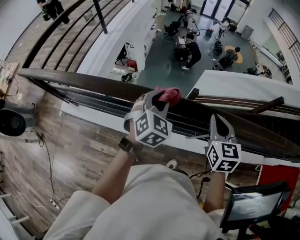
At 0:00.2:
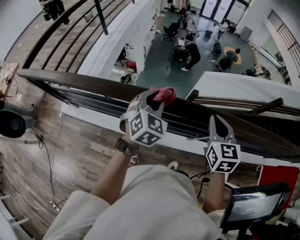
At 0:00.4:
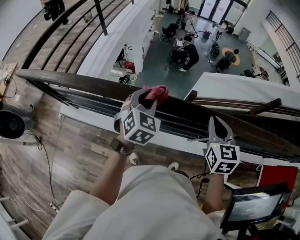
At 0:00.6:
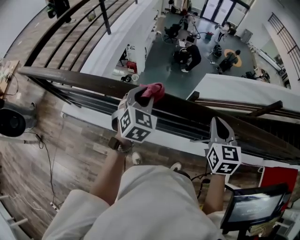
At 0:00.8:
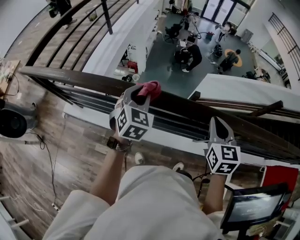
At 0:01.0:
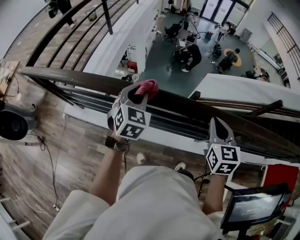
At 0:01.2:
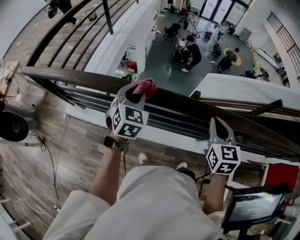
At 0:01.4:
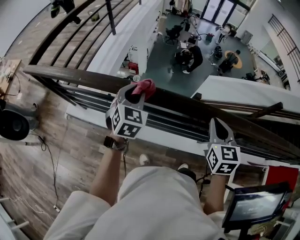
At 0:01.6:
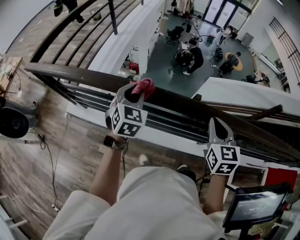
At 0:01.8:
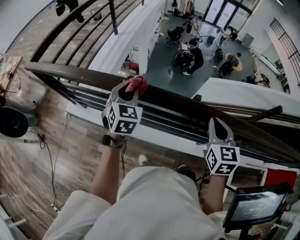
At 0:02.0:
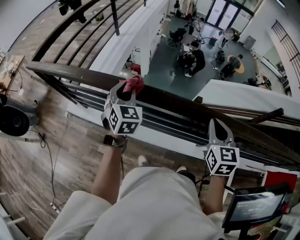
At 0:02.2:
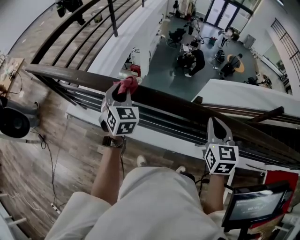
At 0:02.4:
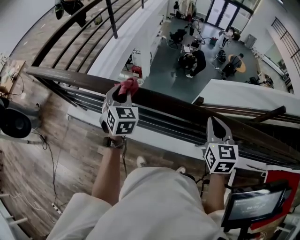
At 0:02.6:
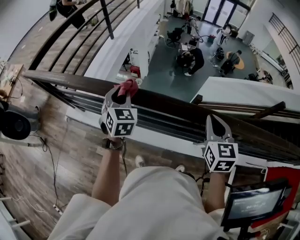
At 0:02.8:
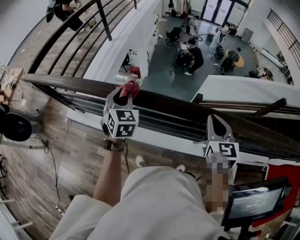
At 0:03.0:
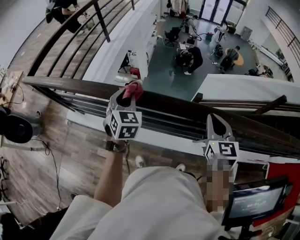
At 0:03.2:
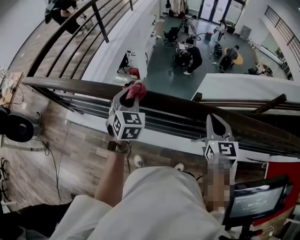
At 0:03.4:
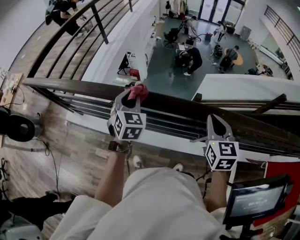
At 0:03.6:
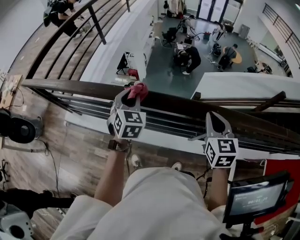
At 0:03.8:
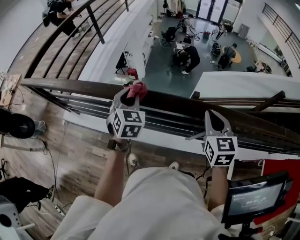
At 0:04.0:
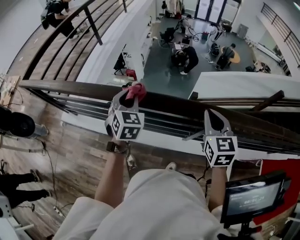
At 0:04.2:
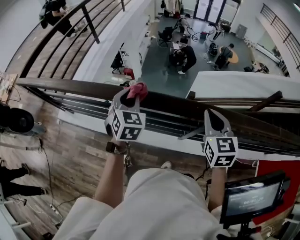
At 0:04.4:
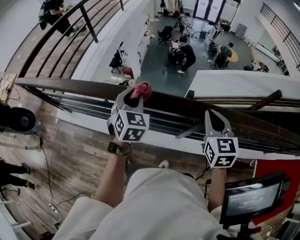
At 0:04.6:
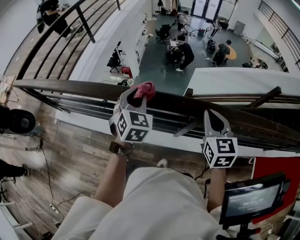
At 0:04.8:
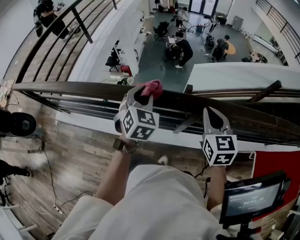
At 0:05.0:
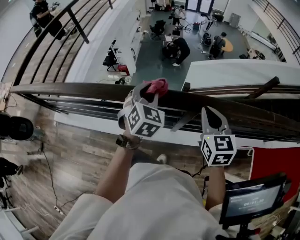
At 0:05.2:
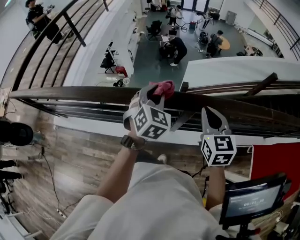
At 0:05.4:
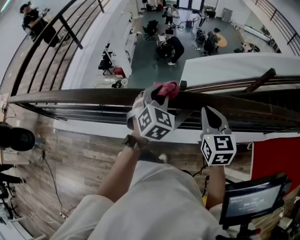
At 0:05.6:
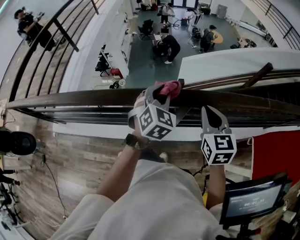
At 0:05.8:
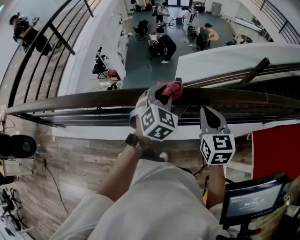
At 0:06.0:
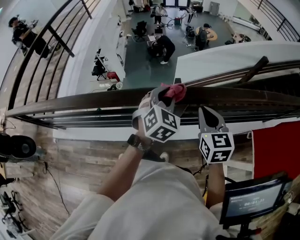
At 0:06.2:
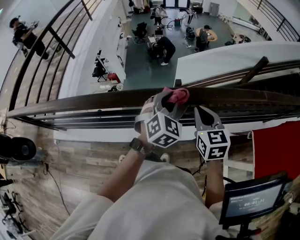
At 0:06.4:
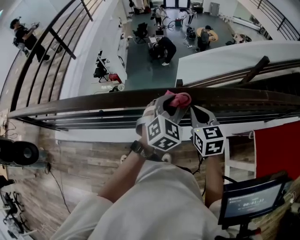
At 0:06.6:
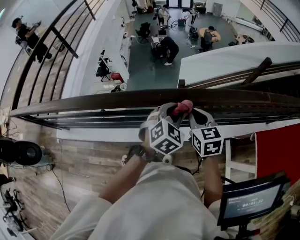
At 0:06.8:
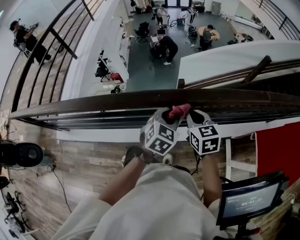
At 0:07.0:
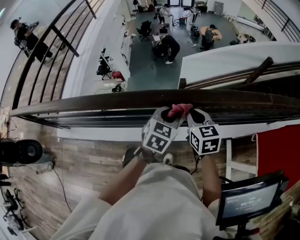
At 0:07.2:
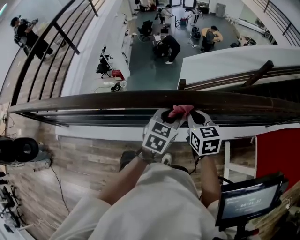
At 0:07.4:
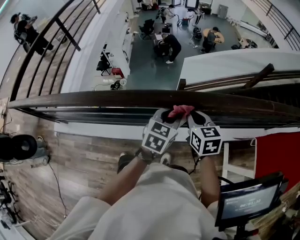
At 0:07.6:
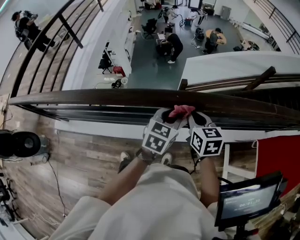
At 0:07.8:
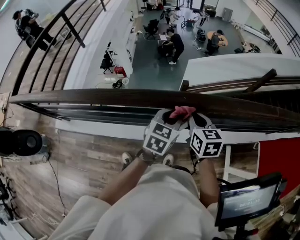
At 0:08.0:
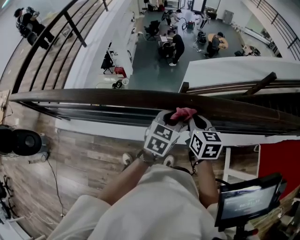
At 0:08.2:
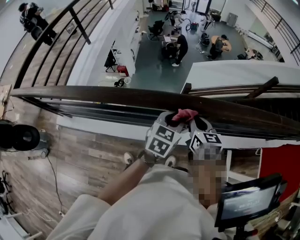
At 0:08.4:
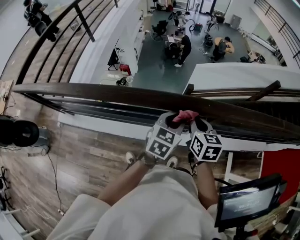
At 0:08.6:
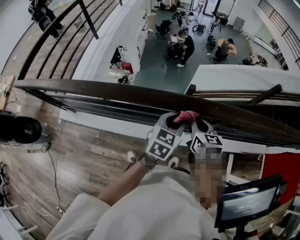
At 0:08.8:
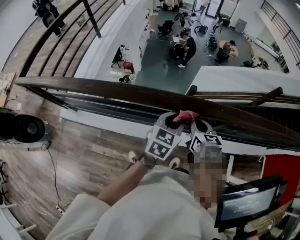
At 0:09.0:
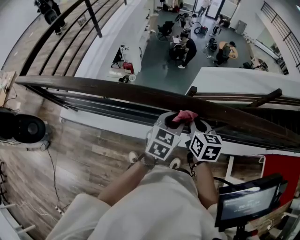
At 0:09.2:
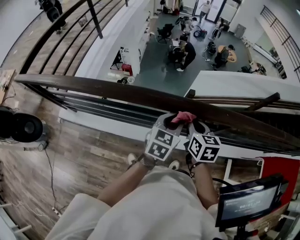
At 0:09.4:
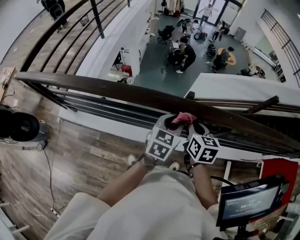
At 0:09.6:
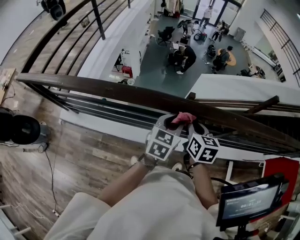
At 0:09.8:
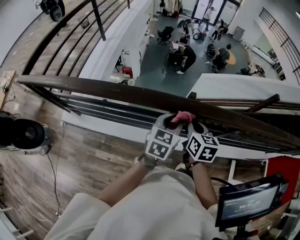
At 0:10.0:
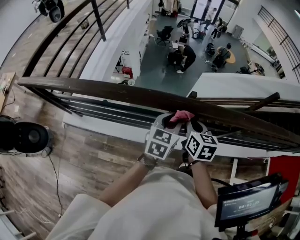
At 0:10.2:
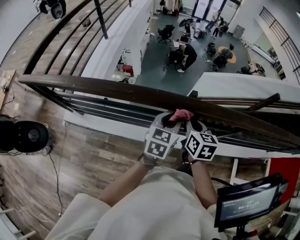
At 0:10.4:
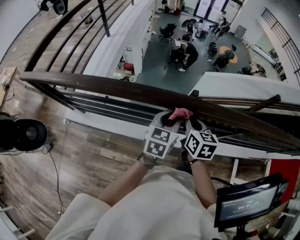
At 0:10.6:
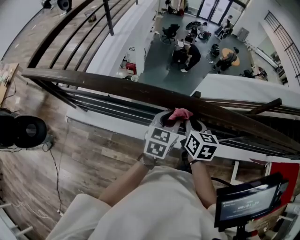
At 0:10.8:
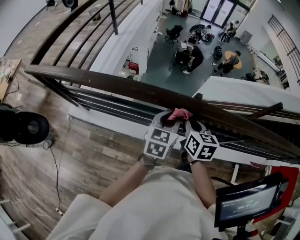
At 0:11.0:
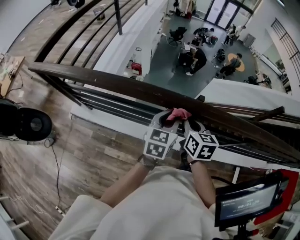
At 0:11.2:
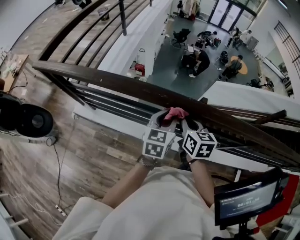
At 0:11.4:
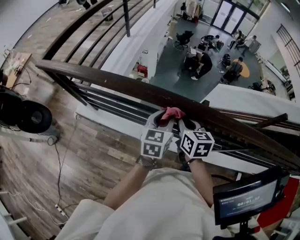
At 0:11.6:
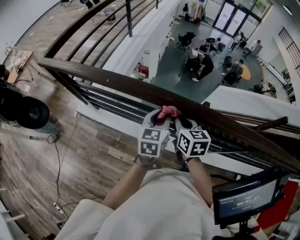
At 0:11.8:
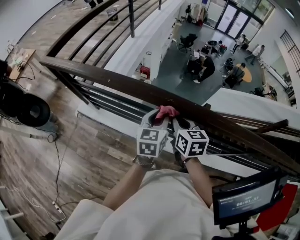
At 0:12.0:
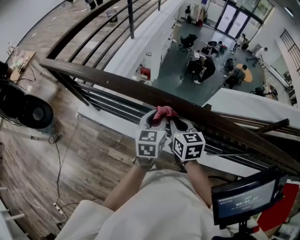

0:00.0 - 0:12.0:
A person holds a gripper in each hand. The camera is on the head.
0:00.0 - 0:01.6: The right gripper is displaced to the left by some 15 cm, while the left gripper shifts some 25 cm to the left.
0:01.6 - 0:03.0: The left gripper ends up roughly 5 cm from where it was. Meanwhile the right gripper is displaced to the right by about 10 cm.
0:03.0 - 0:04.4: Both grippers move to the right, approximately 20 cm.
0:04.4 - 0:06.0: The right gripper shifts approximately 10 cm to the right, while the left gripper moves to the right, approximately 25 cm, and rotates about 30 degrees.
0:06.0 - 0:07.6: The left gripper ends up roughly 5 cm from where it was, and turns by some 30 degrees; the right gripper goes about 10 cm to the left and downward.
0:07.6 - 0:09.0: The grippers both shift to the left by approximately 15 cm.
0:09.0 - 0:10.4: The grippers both shift to the left by some 15 cm.
0:10.4 - 0:12.0: Both grippers travel together to the left, about 15 cm. The left gripper swivels some 30 degrees, while the right gripper turns by approximately 20 degrees.

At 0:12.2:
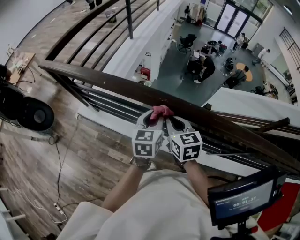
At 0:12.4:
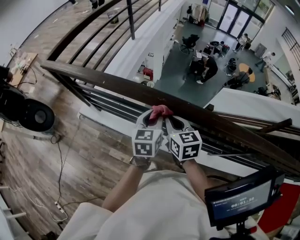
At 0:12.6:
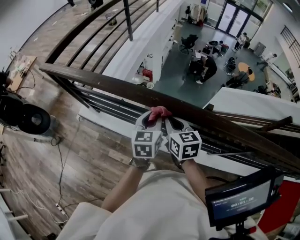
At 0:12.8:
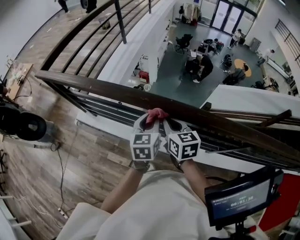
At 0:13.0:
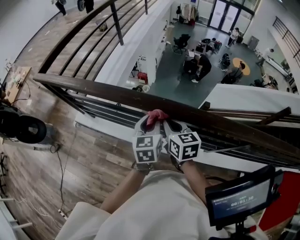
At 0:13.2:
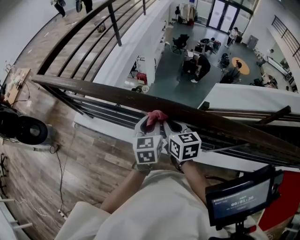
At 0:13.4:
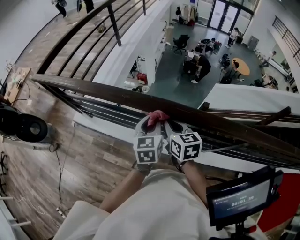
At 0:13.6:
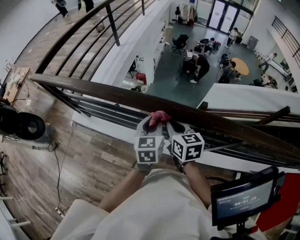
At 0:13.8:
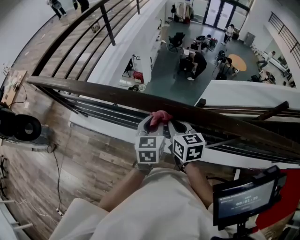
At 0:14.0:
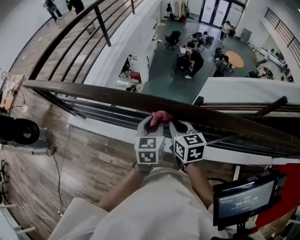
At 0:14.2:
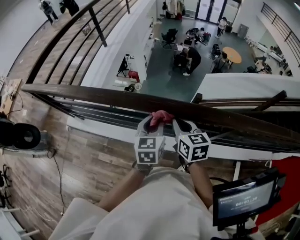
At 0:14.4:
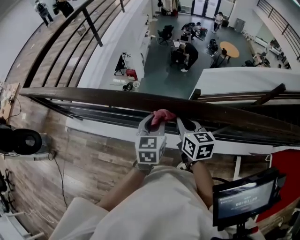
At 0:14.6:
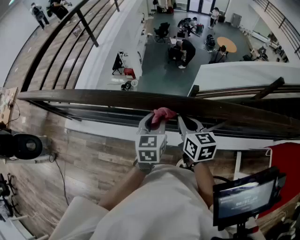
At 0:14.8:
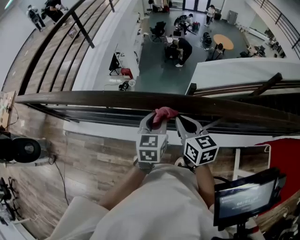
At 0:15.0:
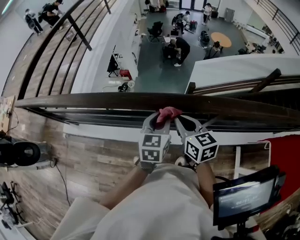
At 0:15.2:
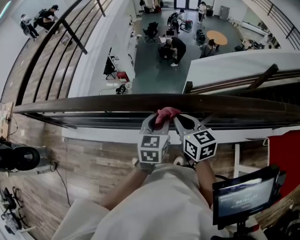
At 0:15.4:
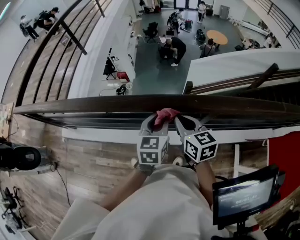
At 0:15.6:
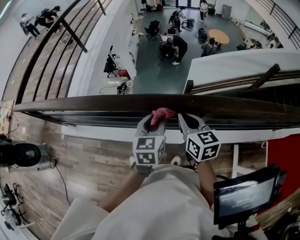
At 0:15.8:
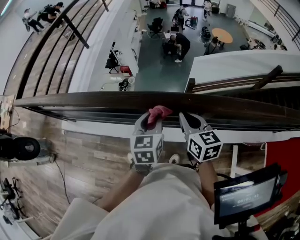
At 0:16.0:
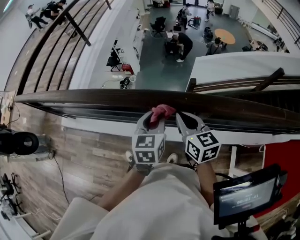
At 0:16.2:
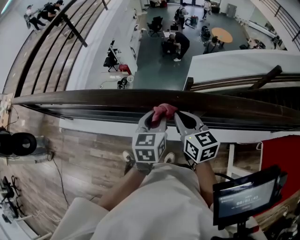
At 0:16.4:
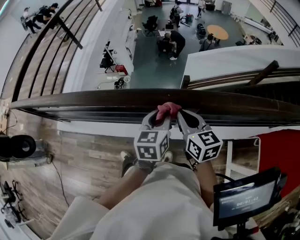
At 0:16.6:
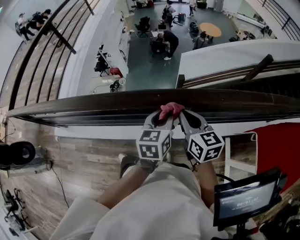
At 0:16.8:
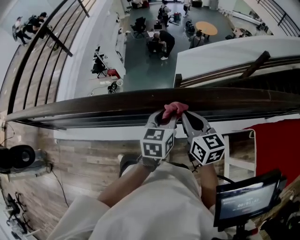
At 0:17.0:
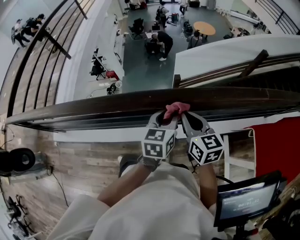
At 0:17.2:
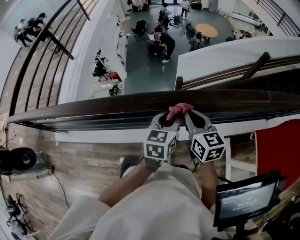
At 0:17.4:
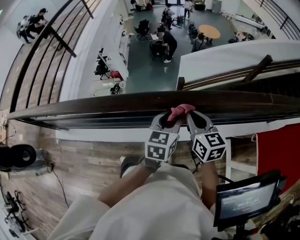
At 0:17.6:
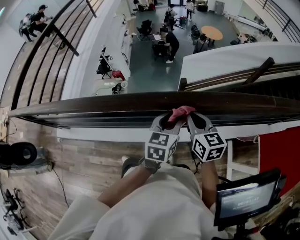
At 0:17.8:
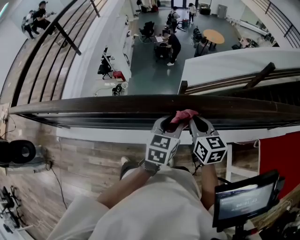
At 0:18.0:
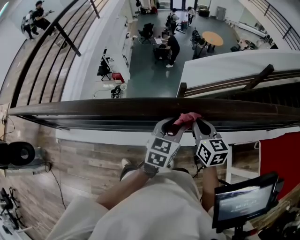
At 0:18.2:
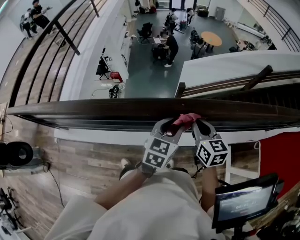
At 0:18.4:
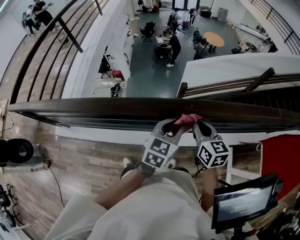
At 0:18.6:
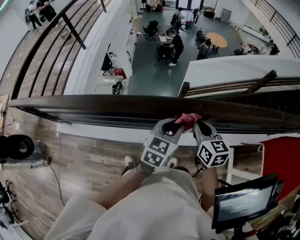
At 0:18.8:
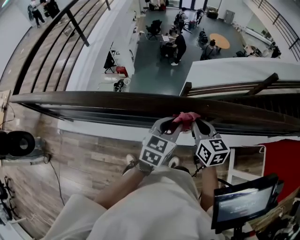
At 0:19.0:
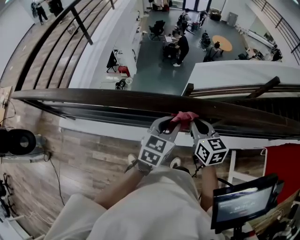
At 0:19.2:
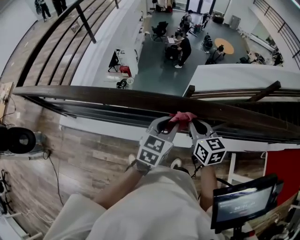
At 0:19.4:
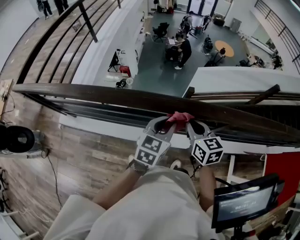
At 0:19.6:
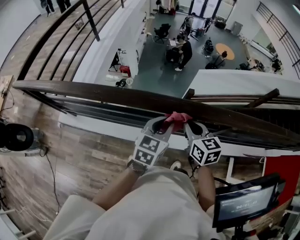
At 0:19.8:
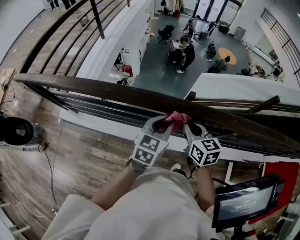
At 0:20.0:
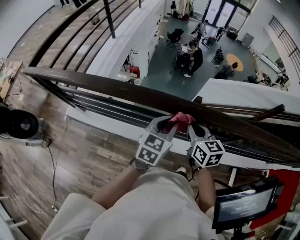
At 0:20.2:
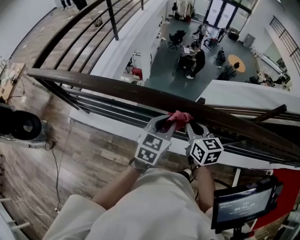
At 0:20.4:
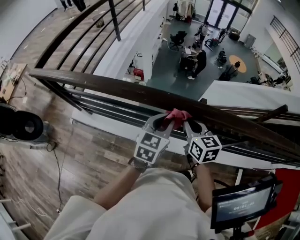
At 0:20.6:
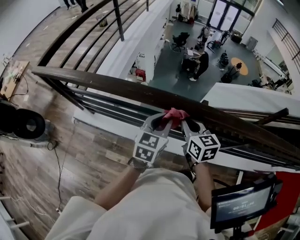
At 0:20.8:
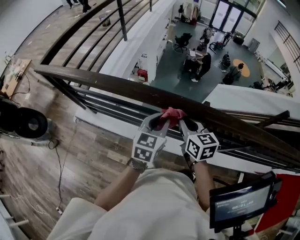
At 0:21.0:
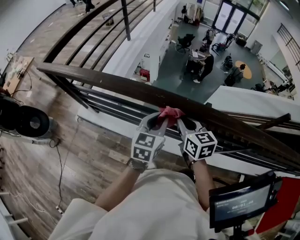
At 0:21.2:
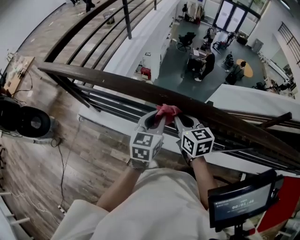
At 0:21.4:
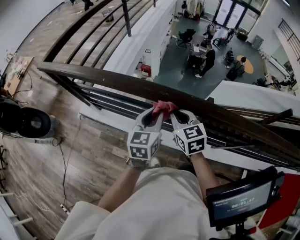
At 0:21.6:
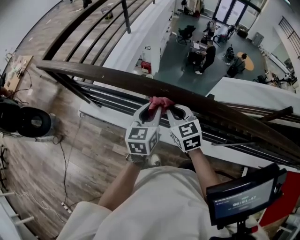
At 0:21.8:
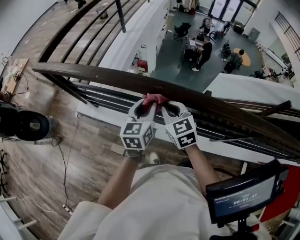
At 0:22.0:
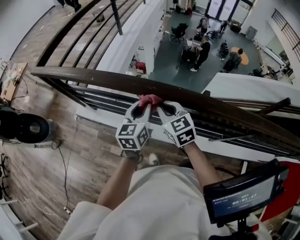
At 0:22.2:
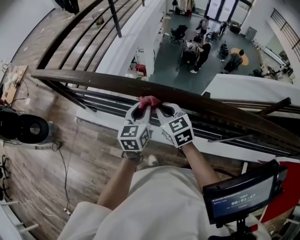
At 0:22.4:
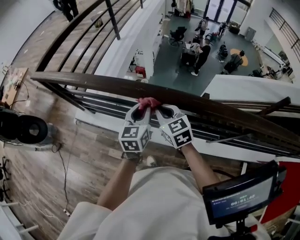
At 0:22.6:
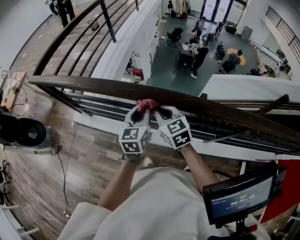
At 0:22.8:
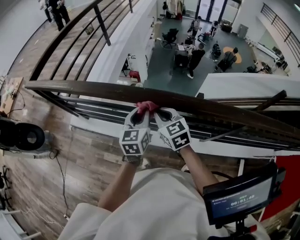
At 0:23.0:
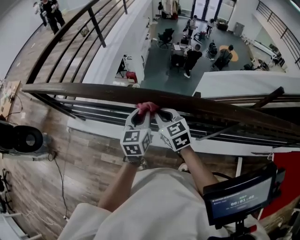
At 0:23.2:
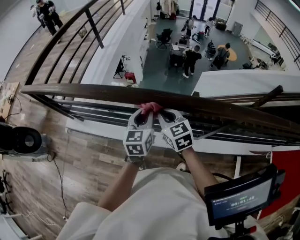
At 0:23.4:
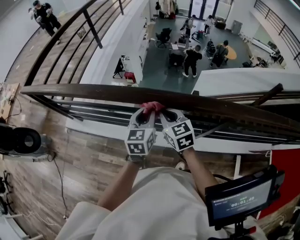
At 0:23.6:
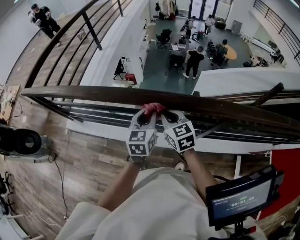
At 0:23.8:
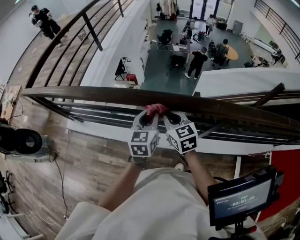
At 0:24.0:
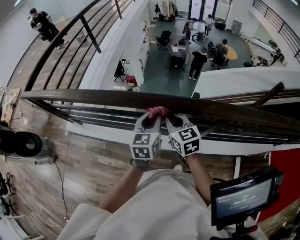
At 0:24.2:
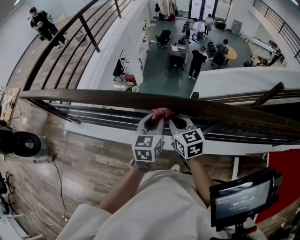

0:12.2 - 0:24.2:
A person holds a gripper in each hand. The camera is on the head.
0:12.2 - 0:13.8: The left gripper travels to the right and backward by approximately 15 cm; the right gripper goes roughly 15 cm to the right.
0:13.8 - 0:15.2: Both grippers move to the right, approximately 15 cm.
0:15.2 - 0:16.6: The grippers both shift to the right by some 15 cm.
0:16.6 - 0:18.2: There are only small adjustments of the grippers.
0:18.2 - 0:19.8: Both grippers travel together to the left, approximately 25 cm.
0:19.8 - 0:21.2: Both grippers move to the left, roughly 20 cm. The left gripper changes its angle by roughly 20 degrees.
0:21.2 - 0:22.6: The grippers stay close to where they were, moving slightly.
0:22.6 - 0:24.2: The two grippers go some 25 cm to the right.
